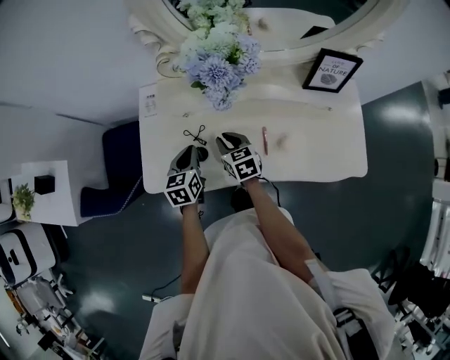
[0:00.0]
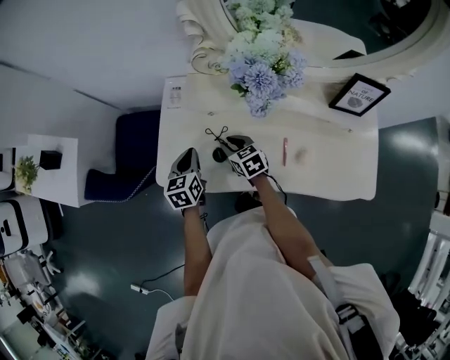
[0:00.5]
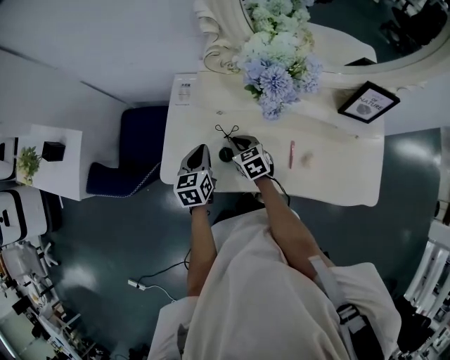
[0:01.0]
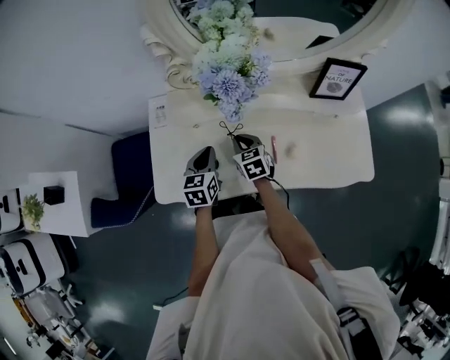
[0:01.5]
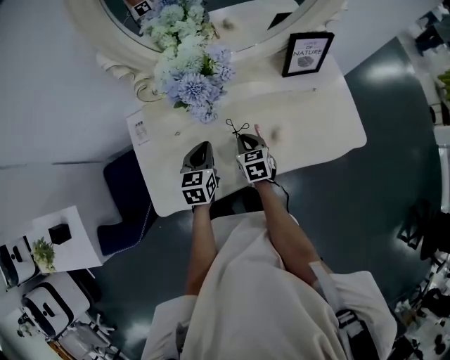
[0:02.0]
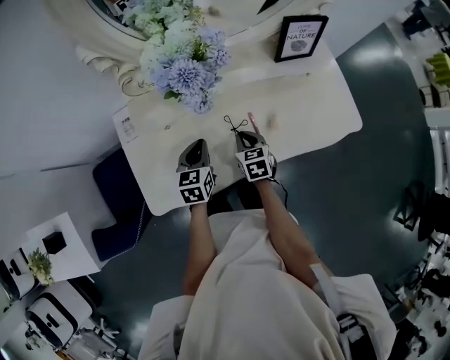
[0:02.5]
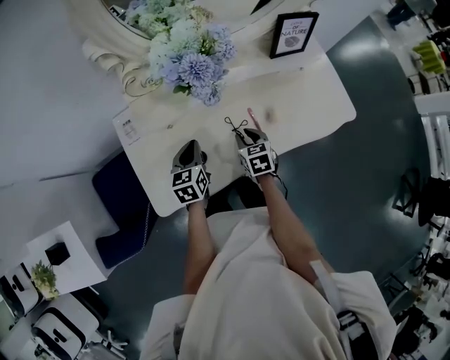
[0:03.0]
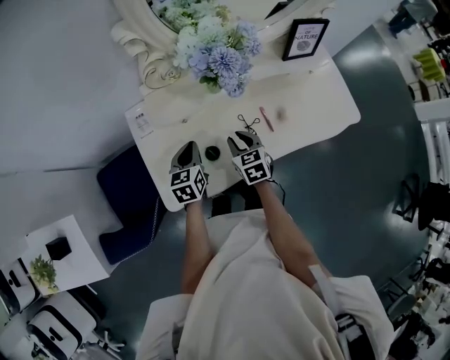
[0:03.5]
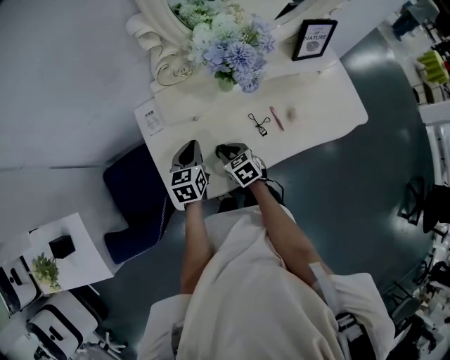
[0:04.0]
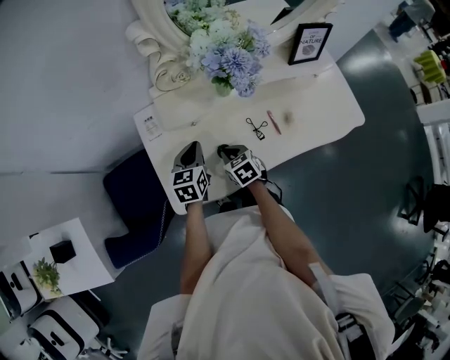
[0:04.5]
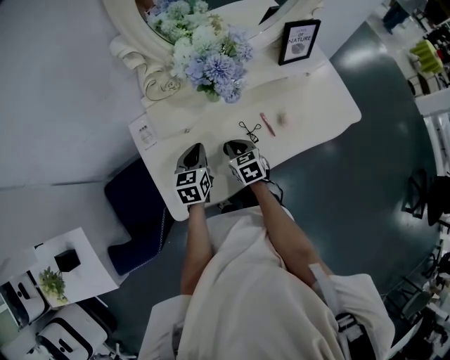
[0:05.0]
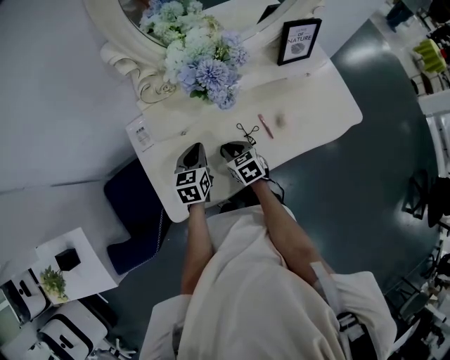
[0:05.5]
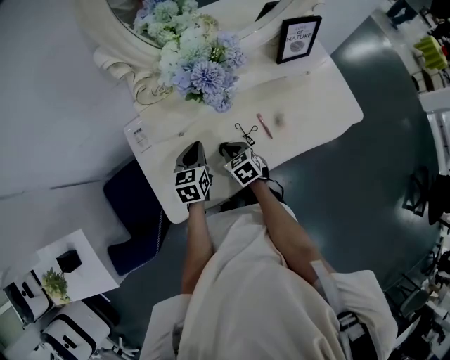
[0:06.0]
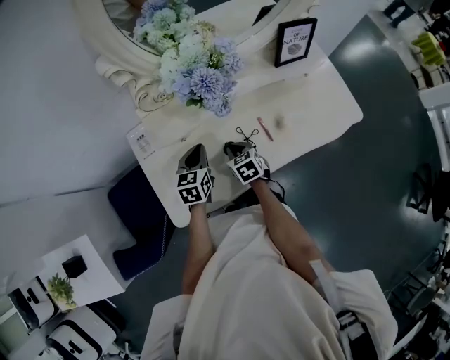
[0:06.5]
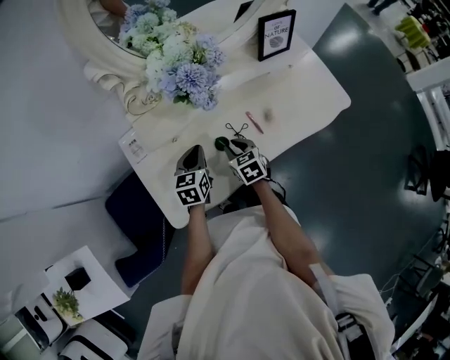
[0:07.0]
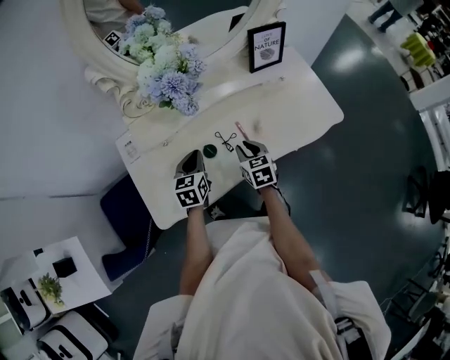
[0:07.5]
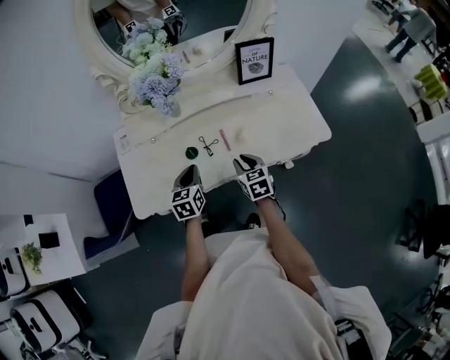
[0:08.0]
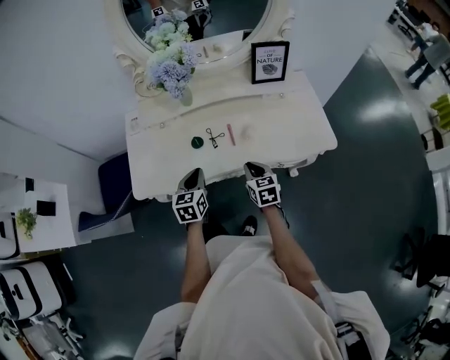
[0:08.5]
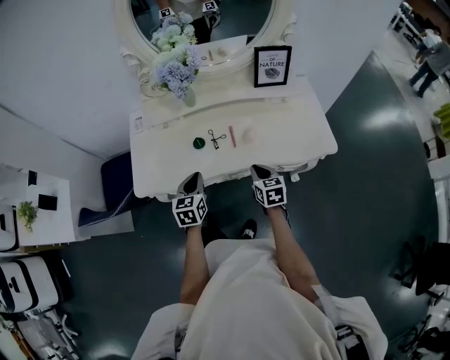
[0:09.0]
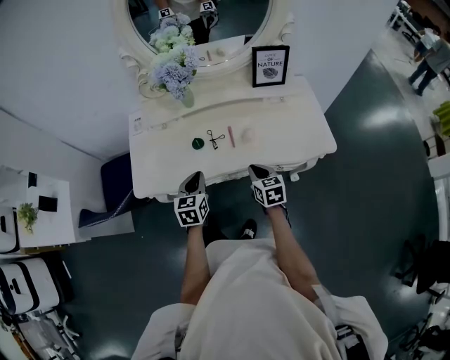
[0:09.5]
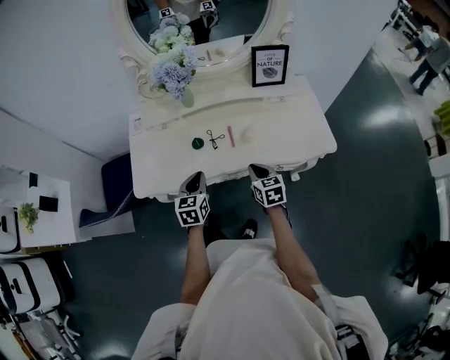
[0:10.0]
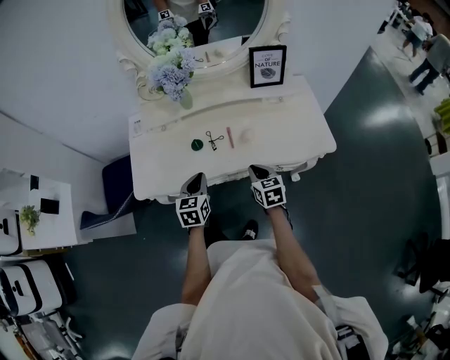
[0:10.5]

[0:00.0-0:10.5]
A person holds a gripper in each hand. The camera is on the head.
0:00.0 to 0:02.0: The right gripper moves approximately 10 cm, and rotates roughly 20 degrees, while the left gripper moves some 10 cm, and turns by roughly 20 degrees.
0:02.0 to 0:04.0: The right gripper heads to the left and backward, covering approximately 20 cm. The left gripper goes some 15 cm to the left.
0:04.0 to 0:06.5: Both grippers move to the right, roughly 10 cm.
0:06.5 to 0:08.5: The right gripper is displaced to the right and backward by approximately 25 cm, while the left gripper heads backward and to the right, covering about 20 cm.
0:08.5 to 0:10.5: The grippers move only a little.

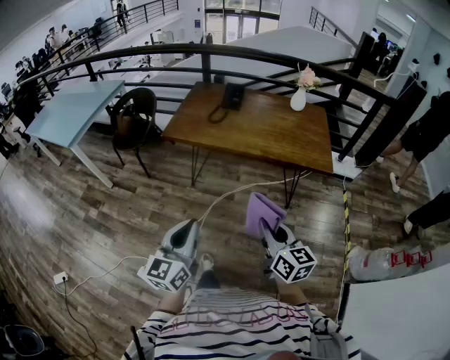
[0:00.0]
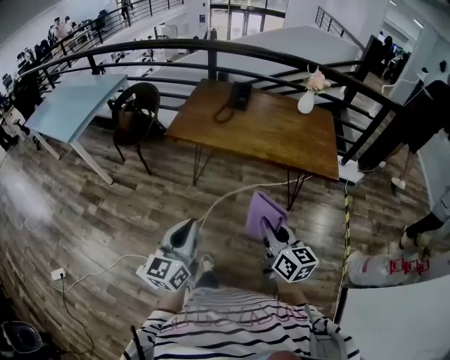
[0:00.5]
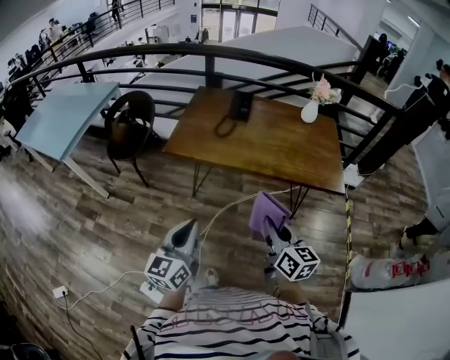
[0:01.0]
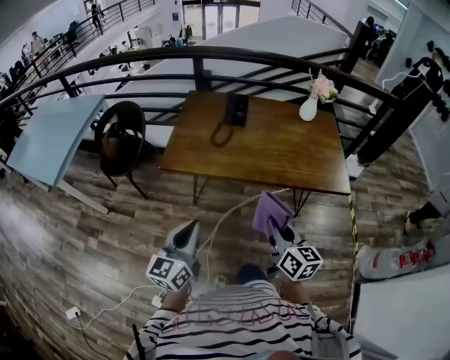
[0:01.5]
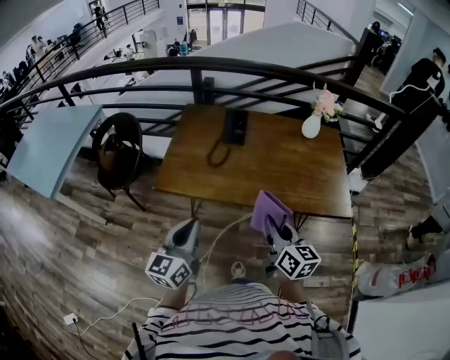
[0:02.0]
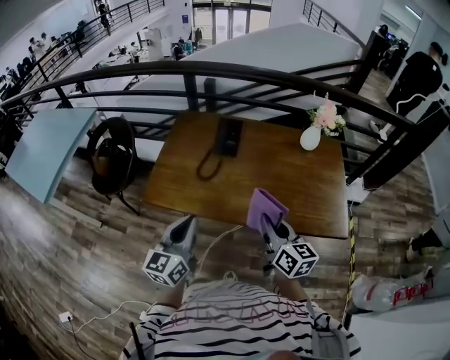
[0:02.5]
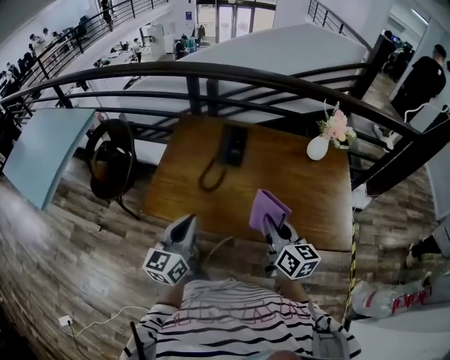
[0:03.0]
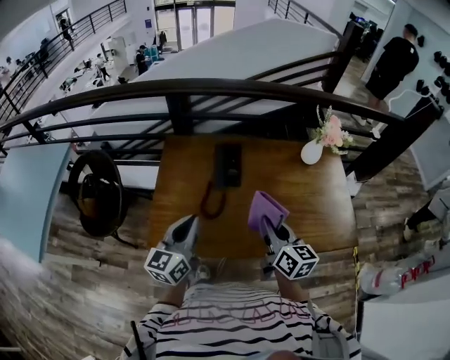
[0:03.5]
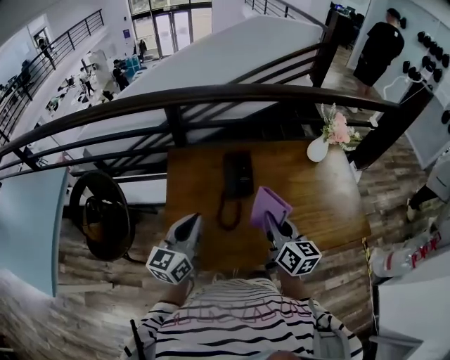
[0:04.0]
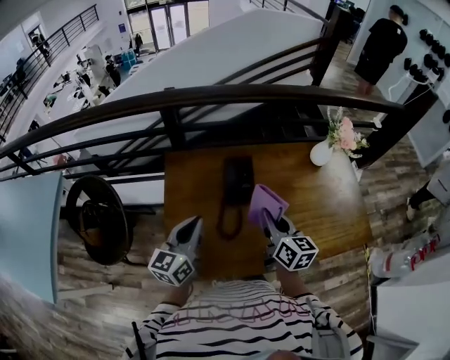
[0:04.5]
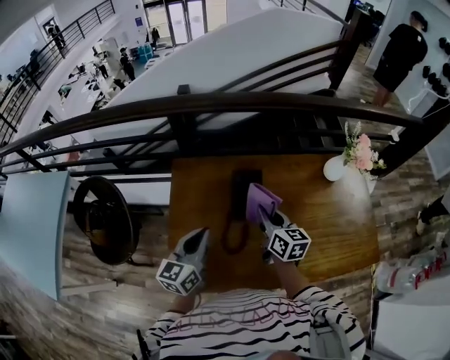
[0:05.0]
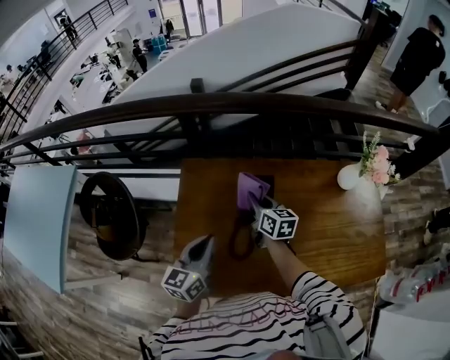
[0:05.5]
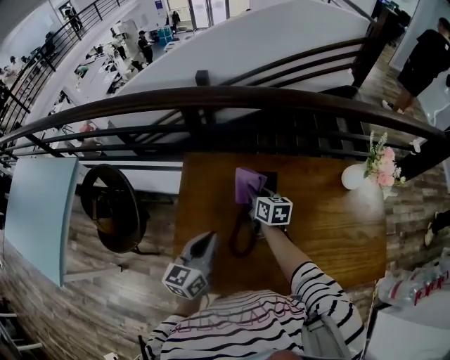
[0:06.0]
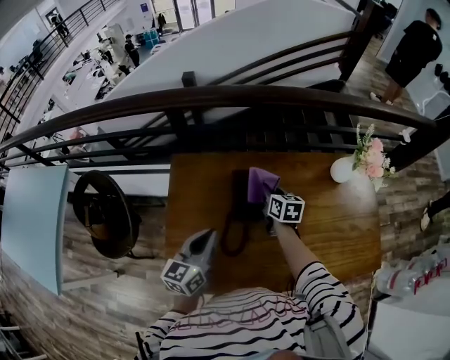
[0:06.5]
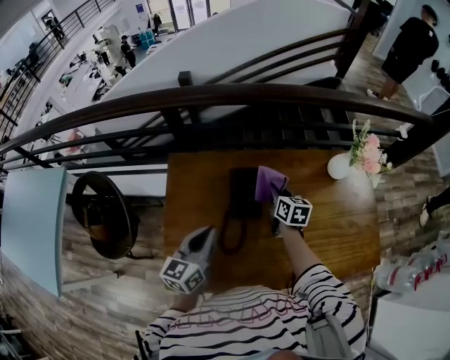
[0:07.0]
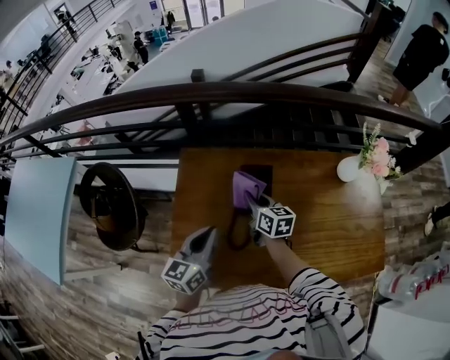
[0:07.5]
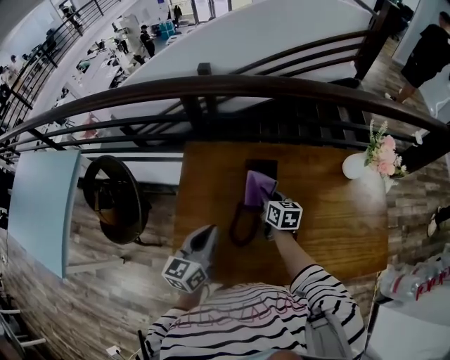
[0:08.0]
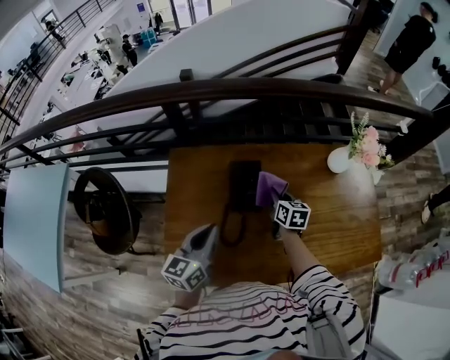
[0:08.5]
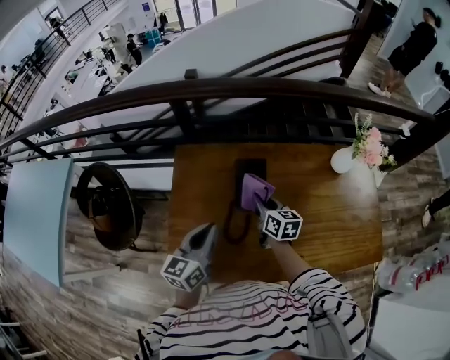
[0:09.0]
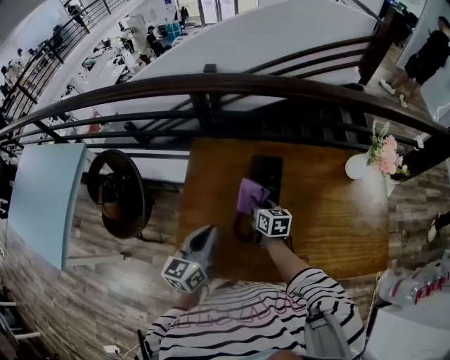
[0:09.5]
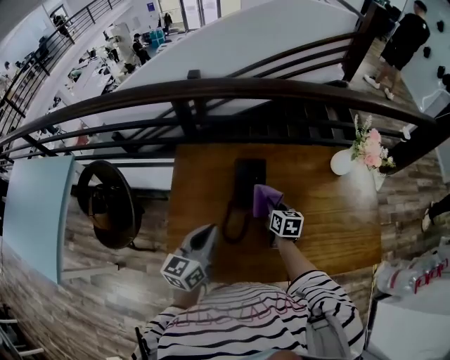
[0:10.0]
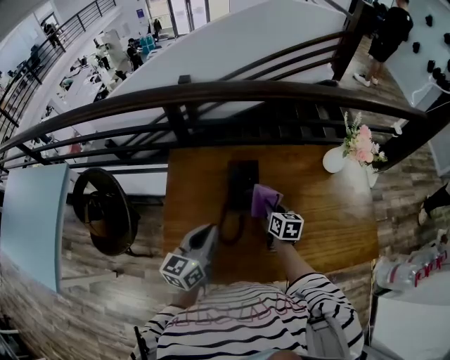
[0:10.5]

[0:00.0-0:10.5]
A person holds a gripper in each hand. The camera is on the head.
0:00.0 to 0:02.0: The two grippers travel together, forward, some 40 cm.
0:02.0 to 0:04.0: The two grippers go approximately 40 cm forward.
0:04.0 to 0:06.5: The left gripper travels forward and downward by some 20 cm, while the right gripper moves forward and downward, roughly 40 cm, and rotates approximately 20 degrees.
0:06.5 to 0:08.5: The right gripper travels backward by about 5 cm.
0:08.5 to 0:10.5: The right gripper is displaced backward by some 5 cm, and goes to the left and returns, some 15 cm each way.

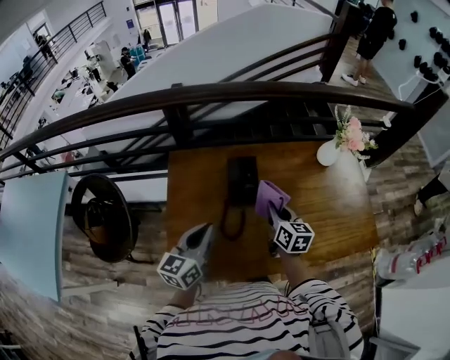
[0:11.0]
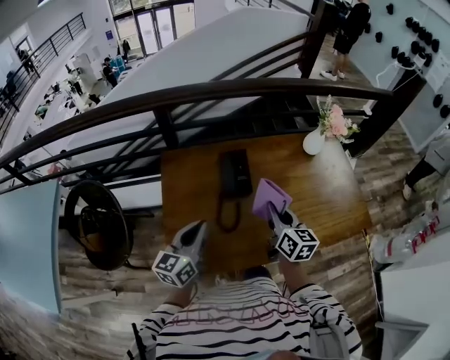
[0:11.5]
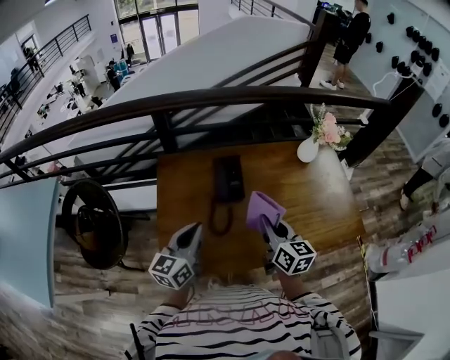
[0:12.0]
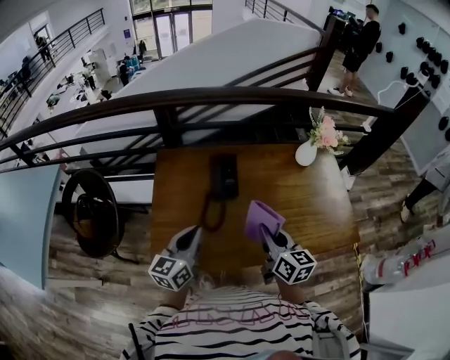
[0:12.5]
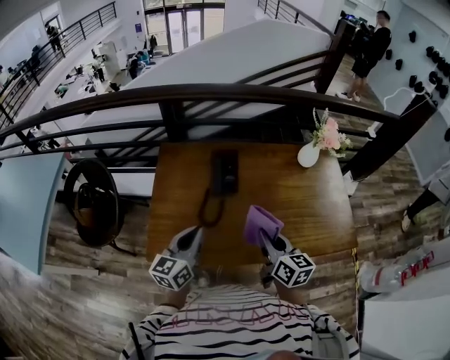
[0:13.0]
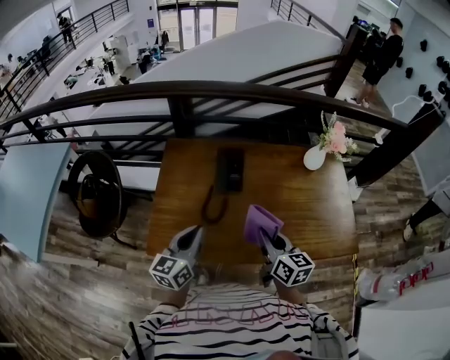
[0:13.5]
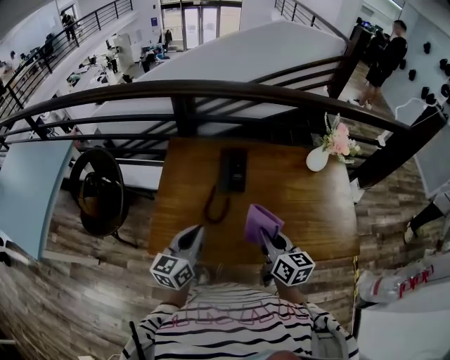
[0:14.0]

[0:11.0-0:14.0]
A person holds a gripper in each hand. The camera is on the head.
0:11.0 to 0:12.5: The right gripper goes approximately 20 cm backward and upward, while the left gripper is displaced backward by some 10 cm.
0:12.5 to 0:14.0: The grippers stay close to where they were, moving slightly.

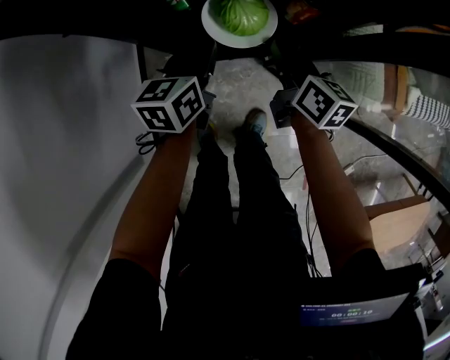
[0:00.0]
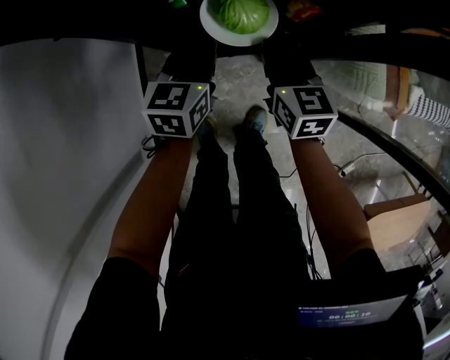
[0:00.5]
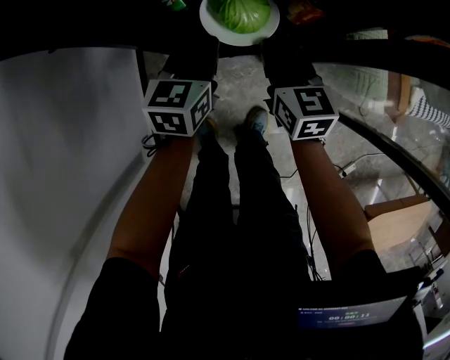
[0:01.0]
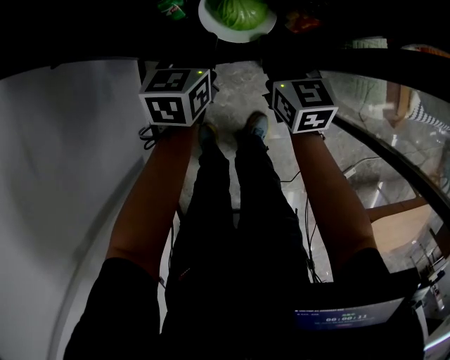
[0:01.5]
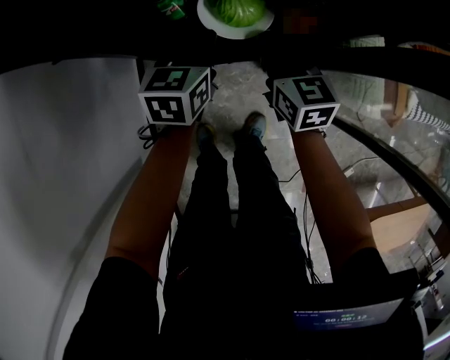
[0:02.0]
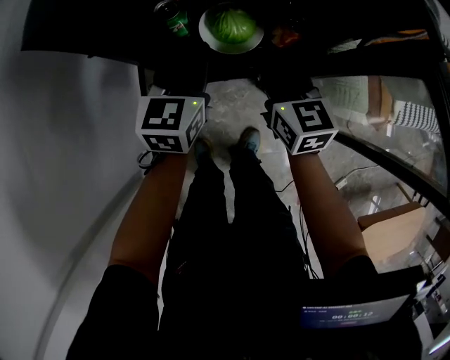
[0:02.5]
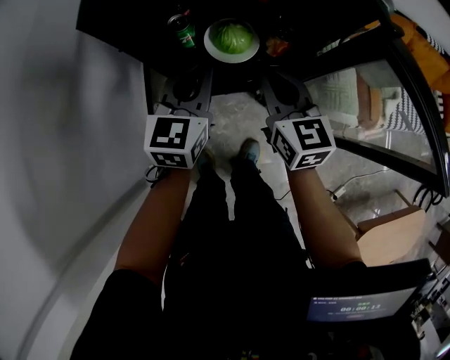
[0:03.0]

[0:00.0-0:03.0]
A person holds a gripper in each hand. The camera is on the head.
0:00.0 to 0:01.5: The right gripper changes place by some 5 cm, and turns by some 30 degrees.
0:01.5 to 0:03.0: The right gripper is displaced upward by some 5 cm.
